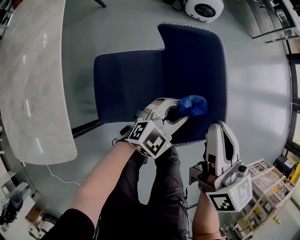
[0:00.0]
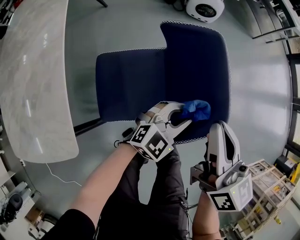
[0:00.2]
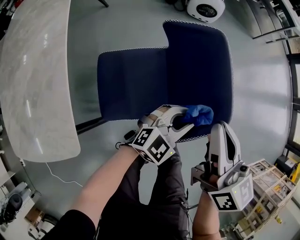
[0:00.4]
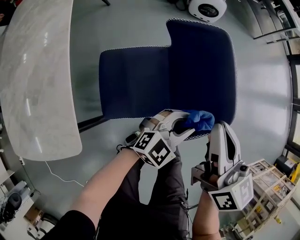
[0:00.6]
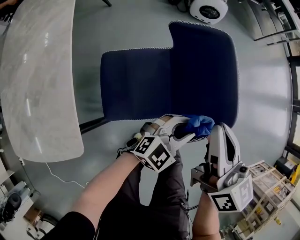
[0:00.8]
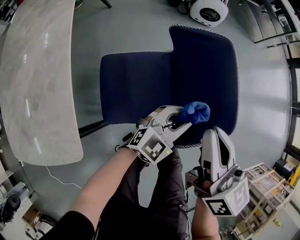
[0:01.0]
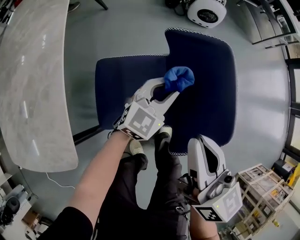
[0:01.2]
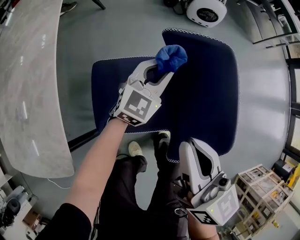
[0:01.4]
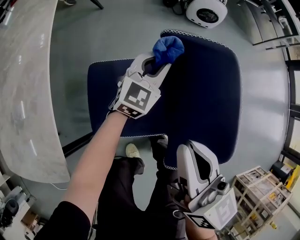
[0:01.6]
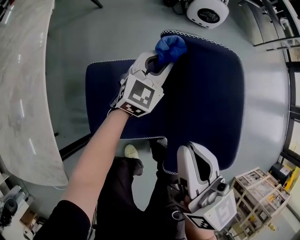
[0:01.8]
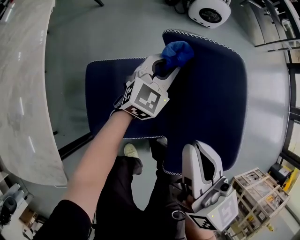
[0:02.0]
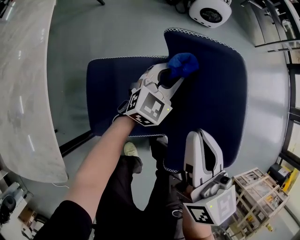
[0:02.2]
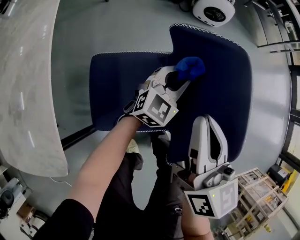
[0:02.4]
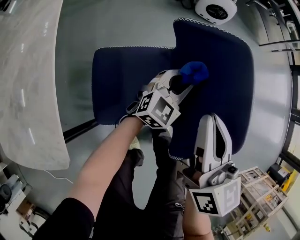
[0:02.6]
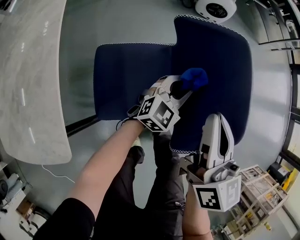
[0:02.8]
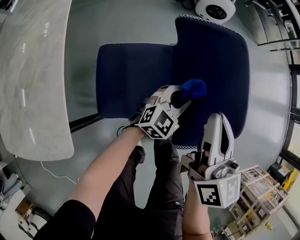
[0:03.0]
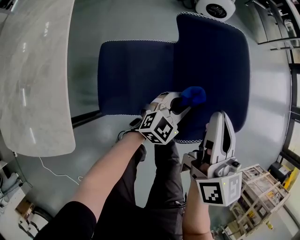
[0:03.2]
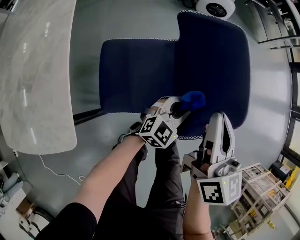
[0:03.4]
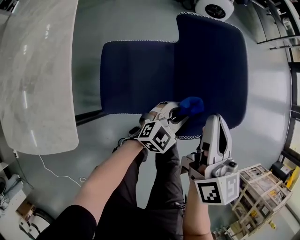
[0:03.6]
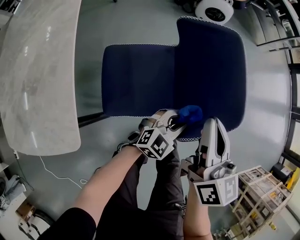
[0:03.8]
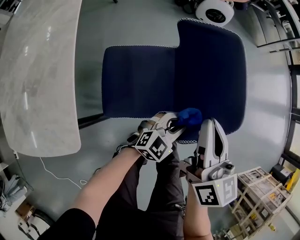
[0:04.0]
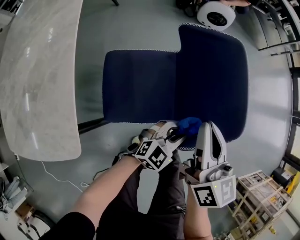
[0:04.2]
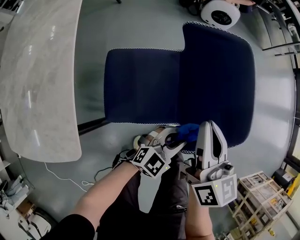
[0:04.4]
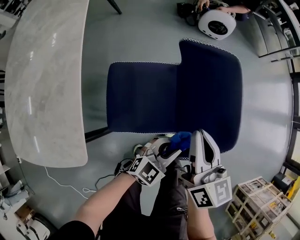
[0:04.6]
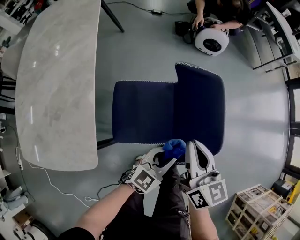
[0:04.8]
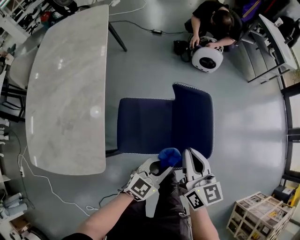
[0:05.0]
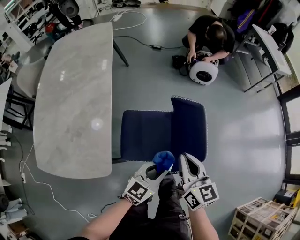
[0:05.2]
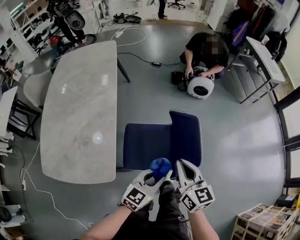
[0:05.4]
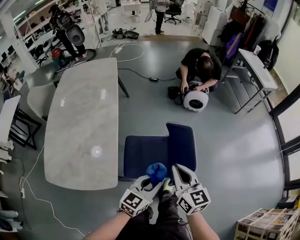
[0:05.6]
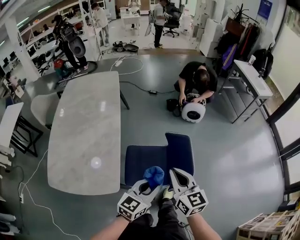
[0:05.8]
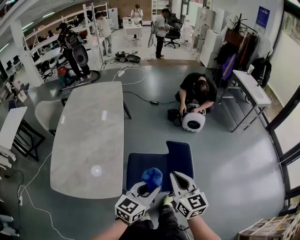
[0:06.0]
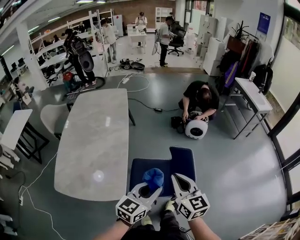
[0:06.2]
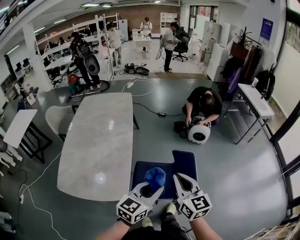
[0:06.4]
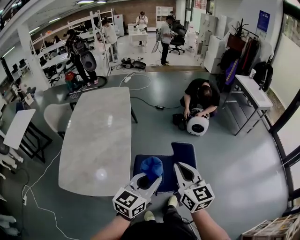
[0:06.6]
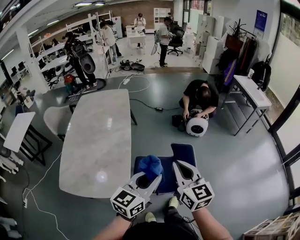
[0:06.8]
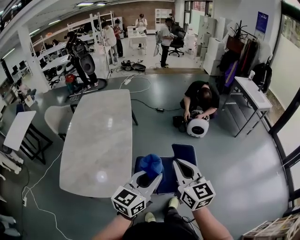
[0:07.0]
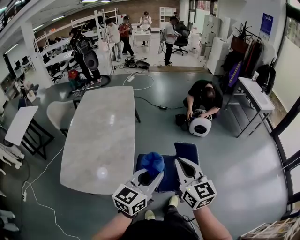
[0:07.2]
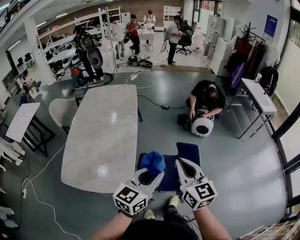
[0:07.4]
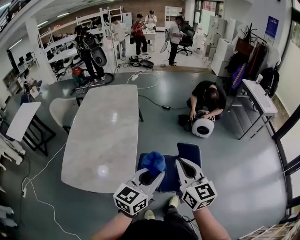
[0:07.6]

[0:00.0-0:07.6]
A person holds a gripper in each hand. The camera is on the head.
0:00.0 to 0:01.6: The left gripper heads forward and to the left, covering about 25 cm, and swivels roughly 20 degrees. Meanwhile the right gripper is displaced to the left by approximately 10 cm.
0:01.6 to 0:03.0: The left gripper moves backward and to the right, roughly 20 cm. The right gripper shifts about 5 cm to the right.
0:03.0 to 0:04.6: The left gripper shifts roughly 10 cm backward.
0:04.6 to 0:06.0: The grippers both shift upward by some 35 cm. The left gripper changes its angle by roughly 20 degrees; the right gripper swivels about 20 degrees.
0:06.0 to 0:07.6: The right gripper goes roughly 10 cm upward; the left gripper travels upward and to the left by roughly 15 cm.

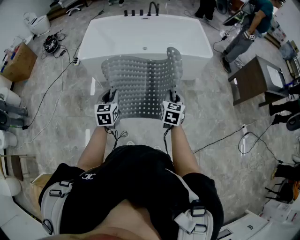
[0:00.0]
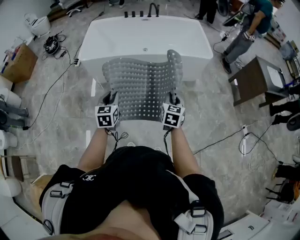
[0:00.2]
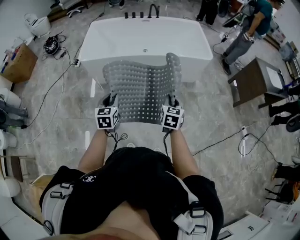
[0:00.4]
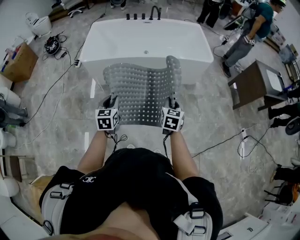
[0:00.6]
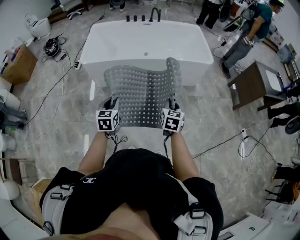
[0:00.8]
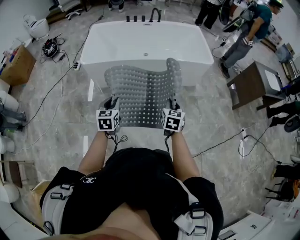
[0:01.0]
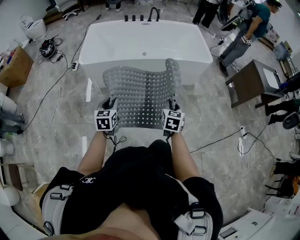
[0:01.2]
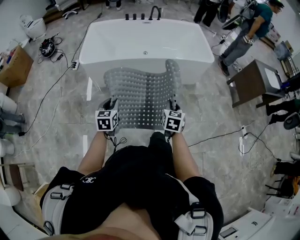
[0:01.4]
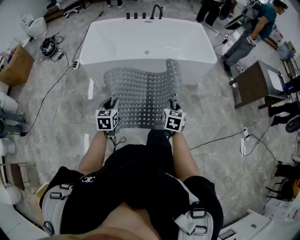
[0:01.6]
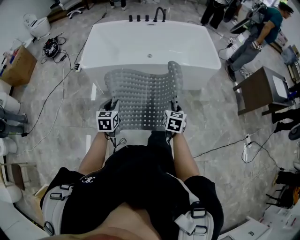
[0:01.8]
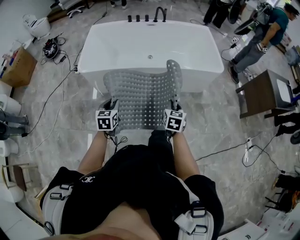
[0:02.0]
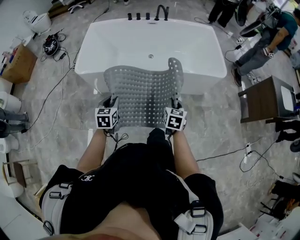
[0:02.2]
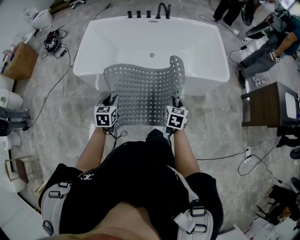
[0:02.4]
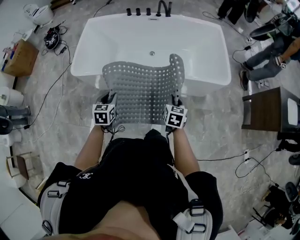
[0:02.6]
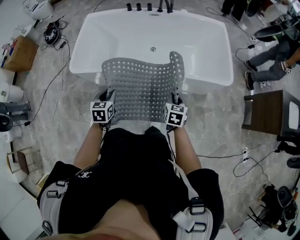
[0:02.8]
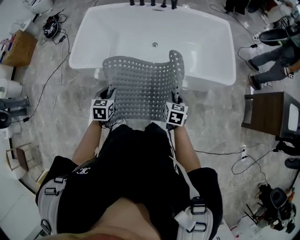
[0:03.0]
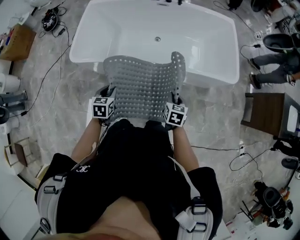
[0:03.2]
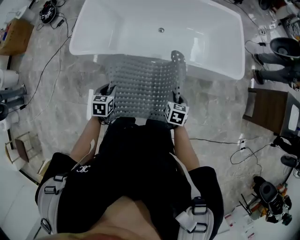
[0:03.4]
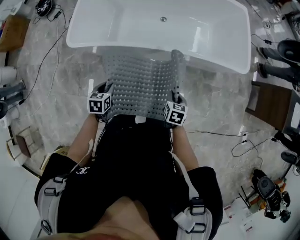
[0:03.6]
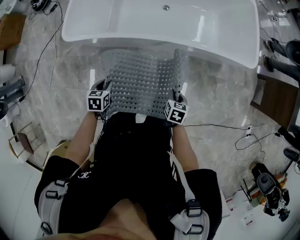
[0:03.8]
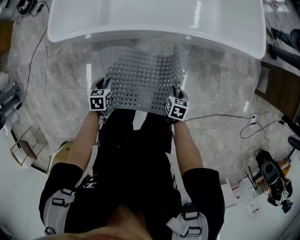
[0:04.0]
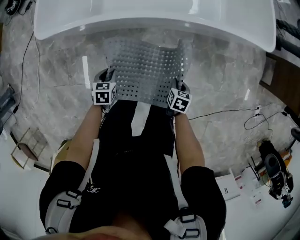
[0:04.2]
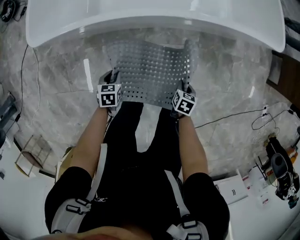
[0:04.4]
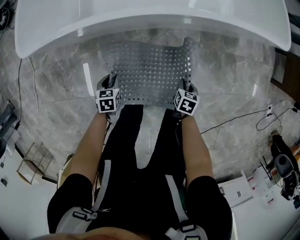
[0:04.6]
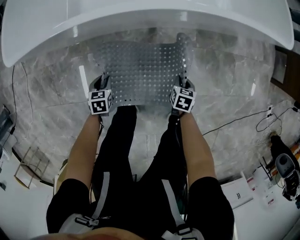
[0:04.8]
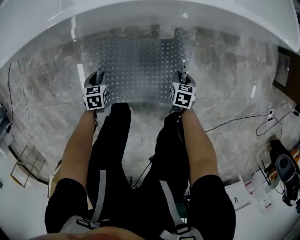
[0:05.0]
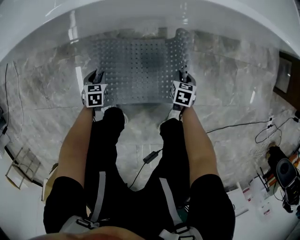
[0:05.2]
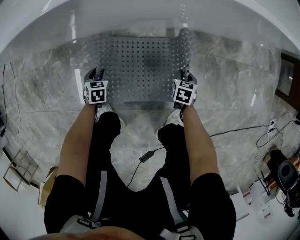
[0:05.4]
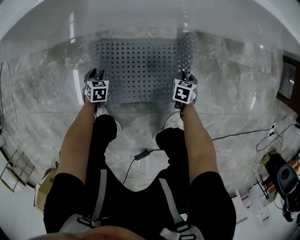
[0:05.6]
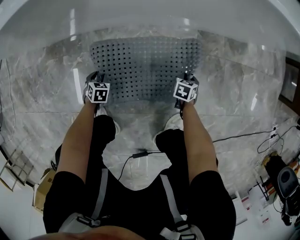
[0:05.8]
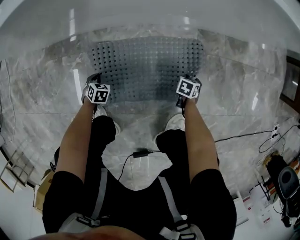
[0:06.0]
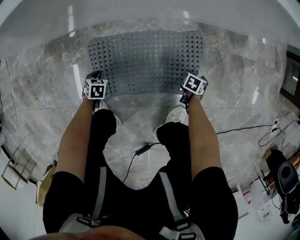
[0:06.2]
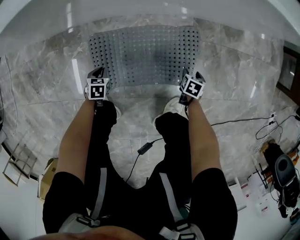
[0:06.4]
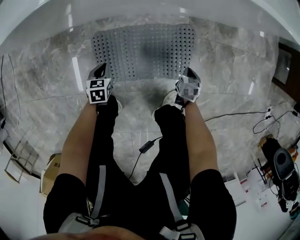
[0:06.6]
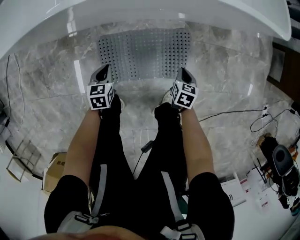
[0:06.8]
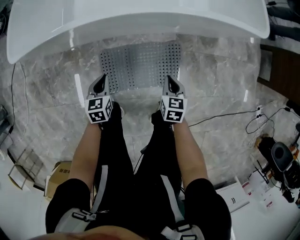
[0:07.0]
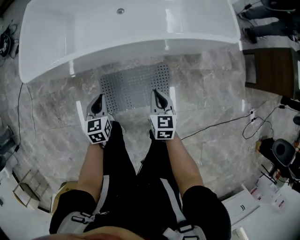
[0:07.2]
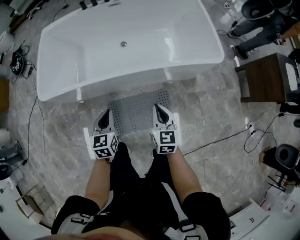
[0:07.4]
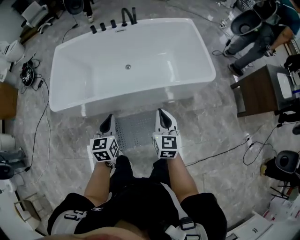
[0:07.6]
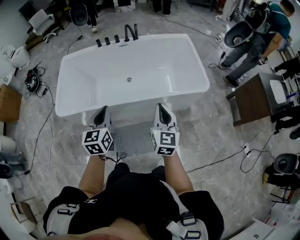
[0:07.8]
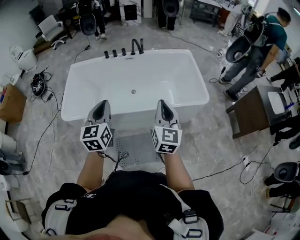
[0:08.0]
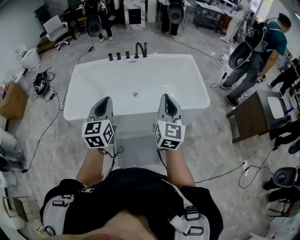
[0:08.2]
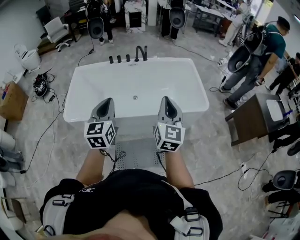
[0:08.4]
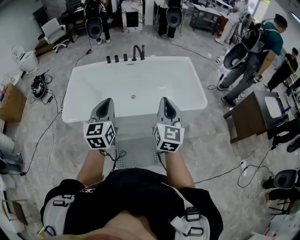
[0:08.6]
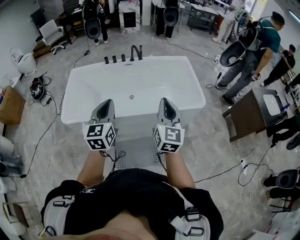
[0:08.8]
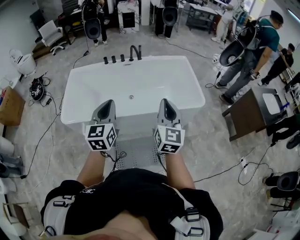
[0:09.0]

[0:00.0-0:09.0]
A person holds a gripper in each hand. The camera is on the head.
0:00.0 to 0:01.6: The grippers both shift to the left and downward by about 10 cm.
0:01.6 to 0:03.0: Both grippers travel together forward, about 30 cm.
0:03.0 to 0:04.4: The two grippers go some 40 cm downward. The left gripper changes its angle by roughly 20 degrees, while the right gripper rotates roughly 30 degrees.
0:04.4 to 0:06.0: The two grippers go roughly 40 cm downward. The right gripper opens. Meanwhile the left gripper rotates about 30 degrees, and closes its fingers.
0:06.0 to 0:07.6: The grippers both shift upward by some 80 cm. The right gripper tips its fingers upward by some 60 degrees, and closes. Meanwhile the left gripper tips its fingers upward by approximately 50 degrees.
0:07.6 to 0:09.0: Both grippers move upward, roughly 25 cm. The left gripper swivels about 20 degrees. The right gripper rotates roughly 20 degrees.

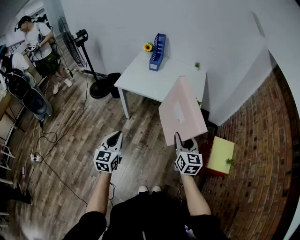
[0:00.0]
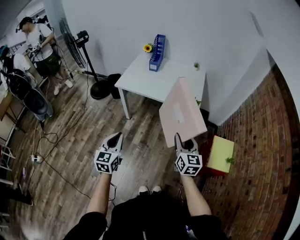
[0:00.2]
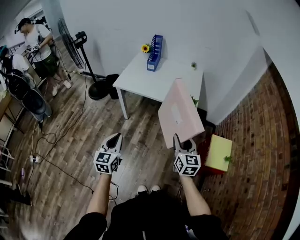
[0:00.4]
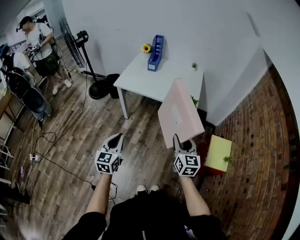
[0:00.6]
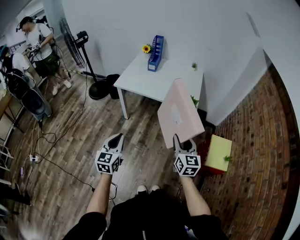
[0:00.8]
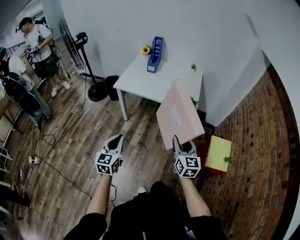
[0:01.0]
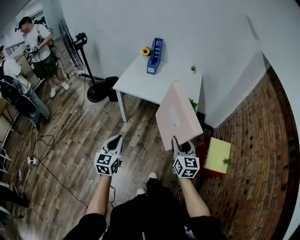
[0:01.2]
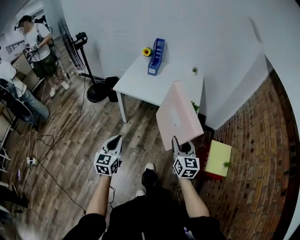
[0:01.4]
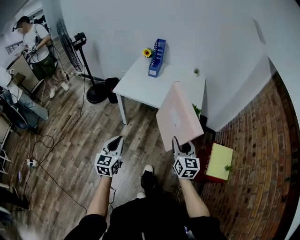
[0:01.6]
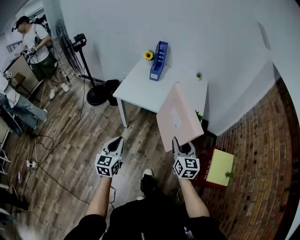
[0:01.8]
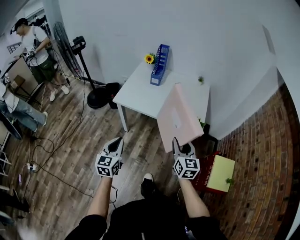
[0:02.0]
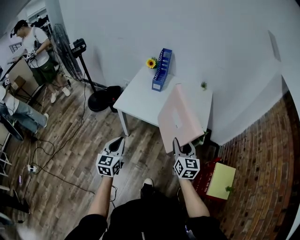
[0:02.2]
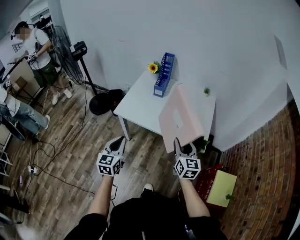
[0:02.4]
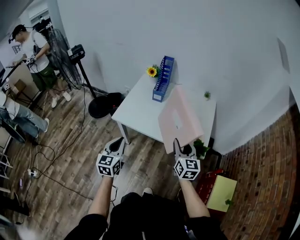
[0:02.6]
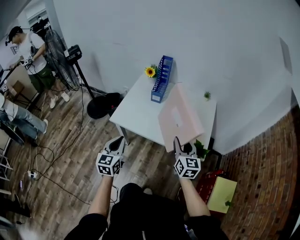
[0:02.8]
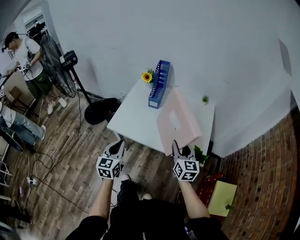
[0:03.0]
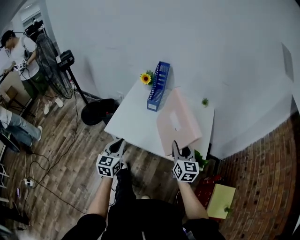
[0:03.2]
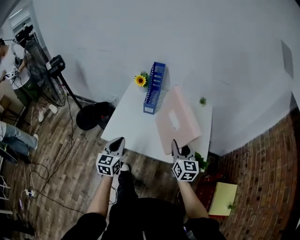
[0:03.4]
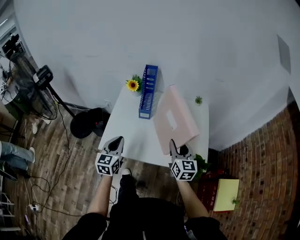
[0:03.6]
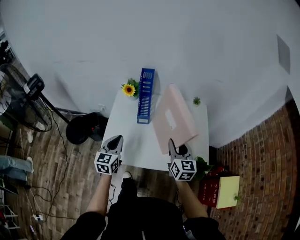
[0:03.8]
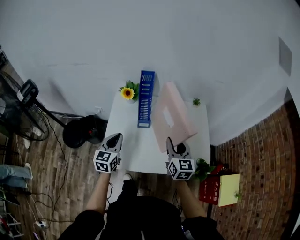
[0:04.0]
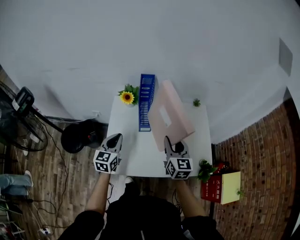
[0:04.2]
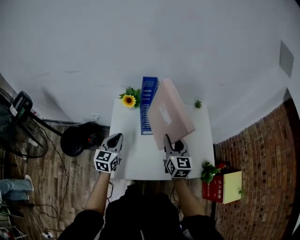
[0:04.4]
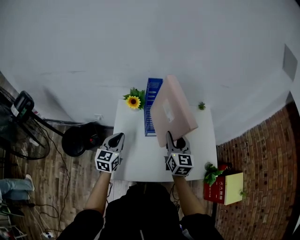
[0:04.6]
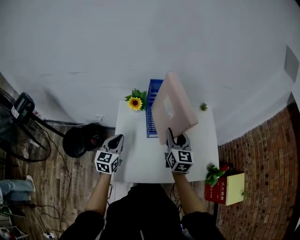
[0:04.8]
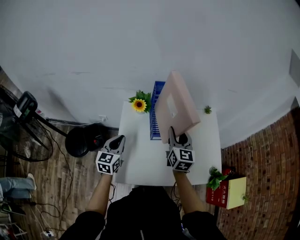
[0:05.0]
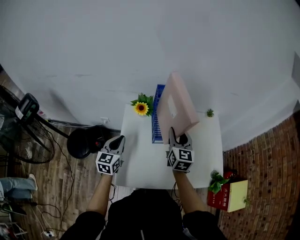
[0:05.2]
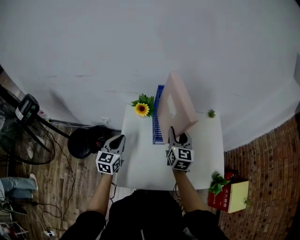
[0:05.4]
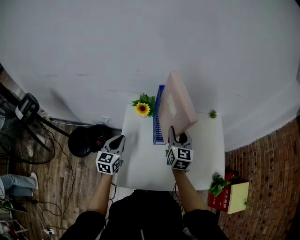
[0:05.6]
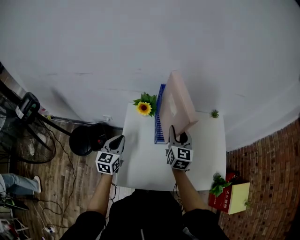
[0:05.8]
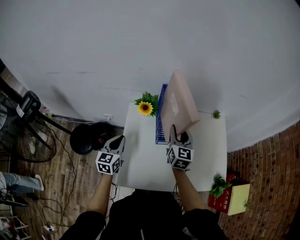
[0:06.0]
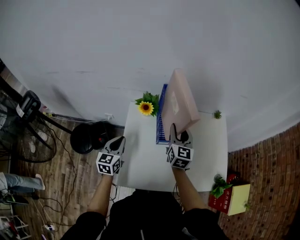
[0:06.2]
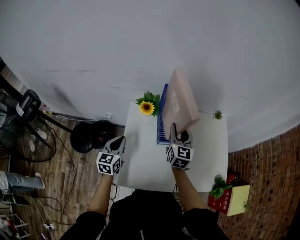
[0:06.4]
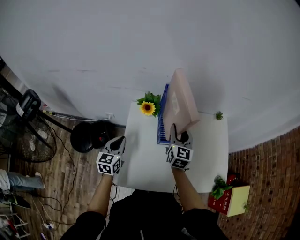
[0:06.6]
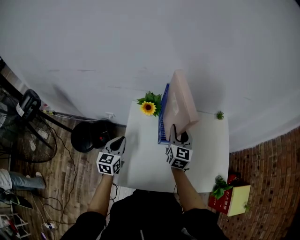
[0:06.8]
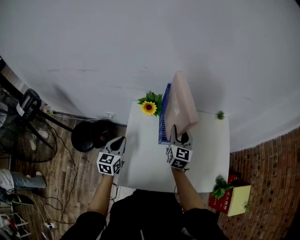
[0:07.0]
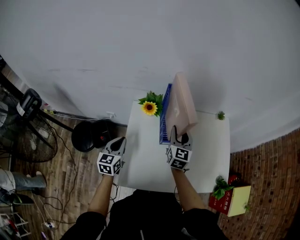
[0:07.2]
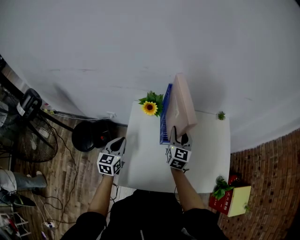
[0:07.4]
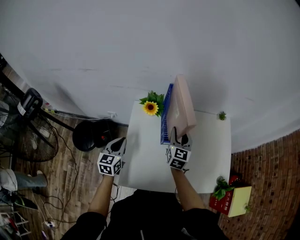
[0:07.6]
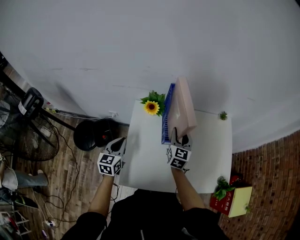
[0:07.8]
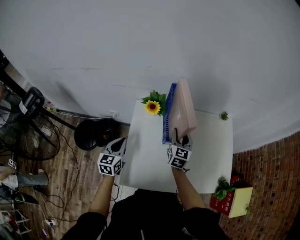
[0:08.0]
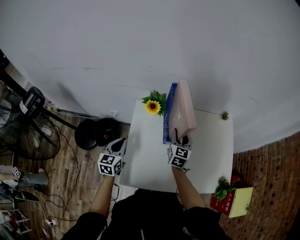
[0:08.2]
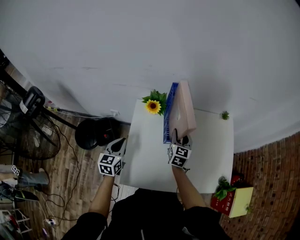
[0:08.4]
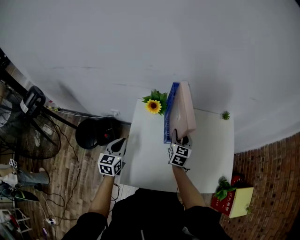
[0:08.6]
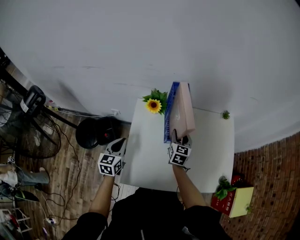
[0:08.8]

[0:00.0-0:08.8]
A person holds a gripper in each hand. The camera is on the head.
0:00.0 to 0:01.4: The grippers stay close to where they were, moving slightly.
0:01.4 to 0:03.0: Both grippers travel together forward, roughly 35 cm.
0:03.0 to 0:04.4: The left gripper shifts roughly 35 cm forward, and turns by some 20 degrees, while the right gripper moves forward and to the left, approximately 30 cm.
0:04.4 to 0:05.8: The right gripper heads forward and to the left, covering about 15 cm, while the left gripper is displaced to the left by about 5 cm.
0:05.8 to 0:07.4: The grippers move only a little.
0:07.4 to 0:08.8: The right gripper goes about 10 cm downward.
